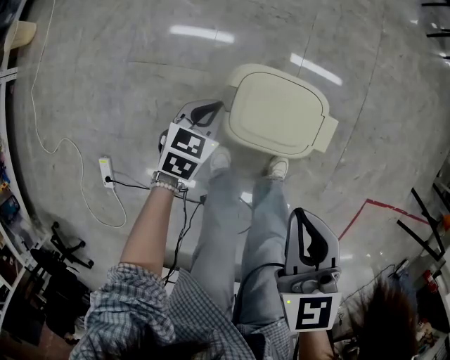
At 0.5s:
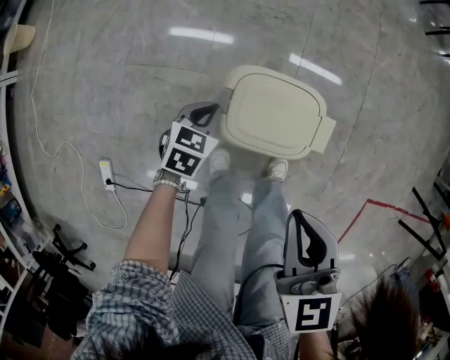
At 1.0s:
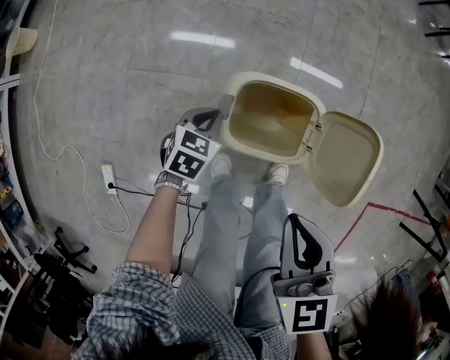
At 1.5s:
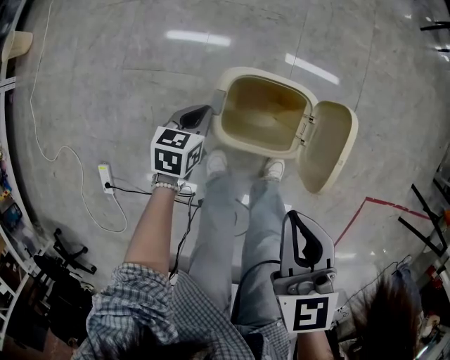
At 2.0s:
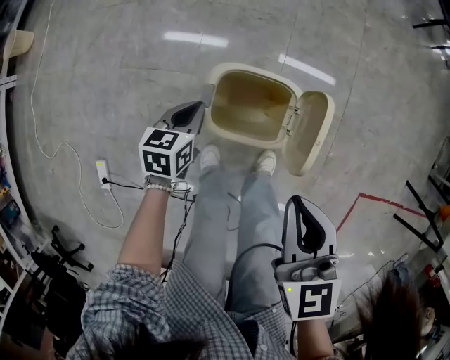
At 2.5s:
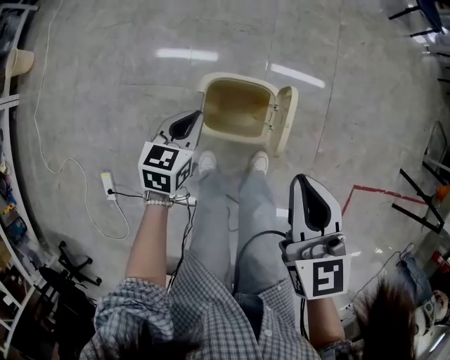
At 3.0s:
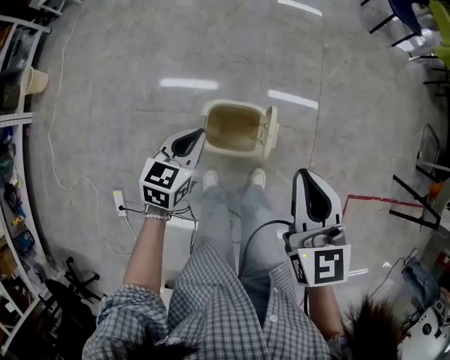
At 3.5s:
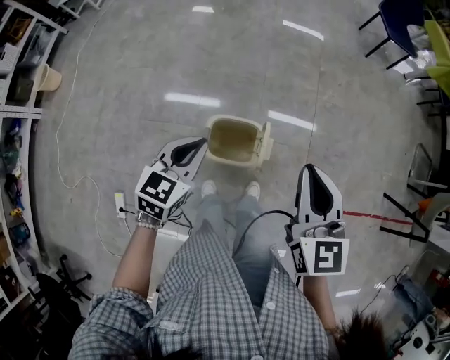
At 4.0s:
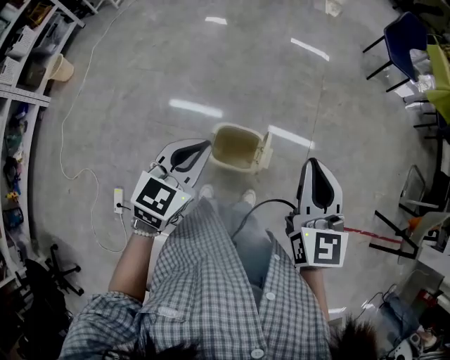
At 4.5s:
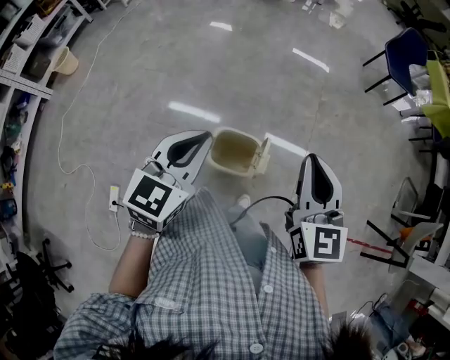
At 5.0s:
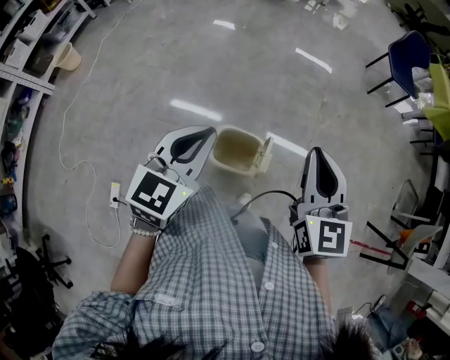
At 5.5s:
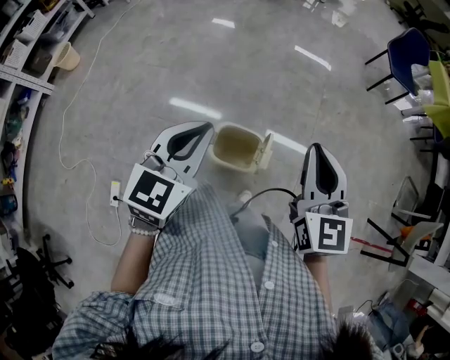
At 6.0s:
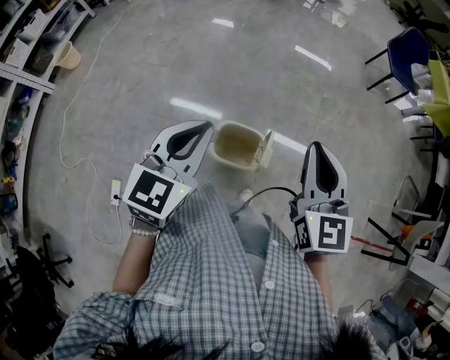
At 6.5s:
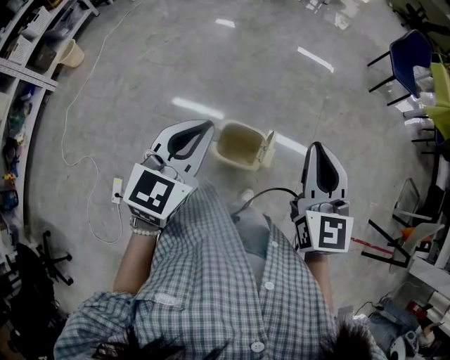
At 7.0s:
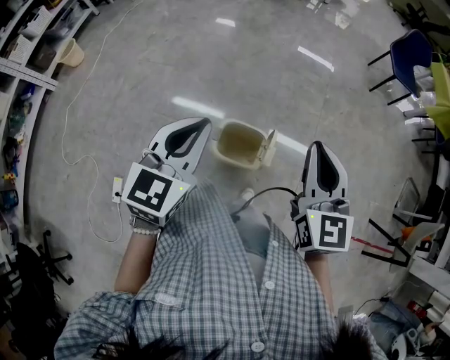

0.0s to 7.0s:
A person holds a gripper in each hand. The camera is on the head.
0.0s to 2.0s: The right gripper moves some 5 cm.
2.0s to 3.5s: Both grippers move upward, roughly 30 cm. The left gripper swivels some 30 degrees; the right gripper rotates roughly 20 degrees.
3.5s to 5.0s: The left gripper is displaced upward by about 15 cm. The right gripper shifts approximately 10 cm upward.
5.0s to 7.0s: The grippers stay close to where they were, moving slightly.

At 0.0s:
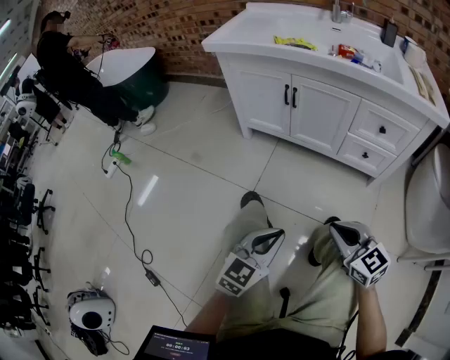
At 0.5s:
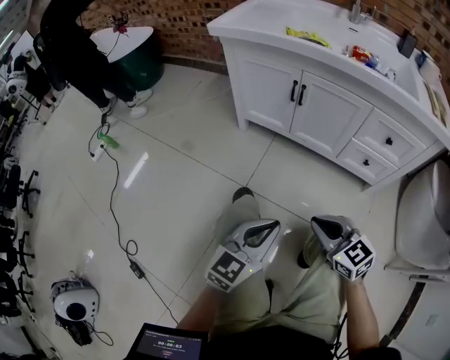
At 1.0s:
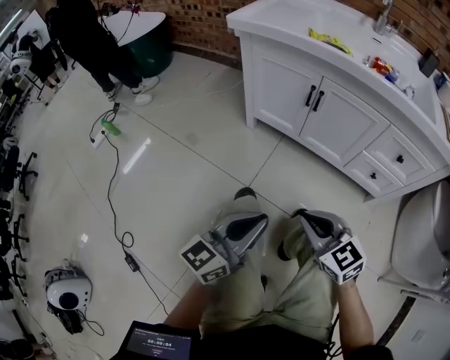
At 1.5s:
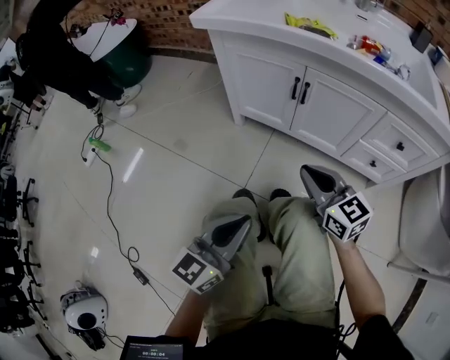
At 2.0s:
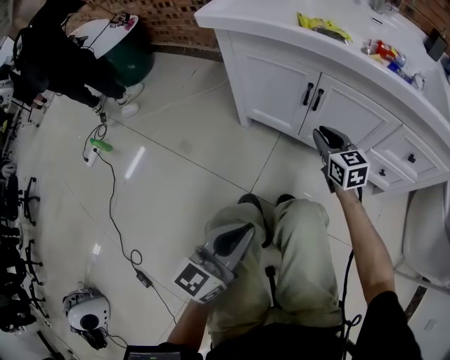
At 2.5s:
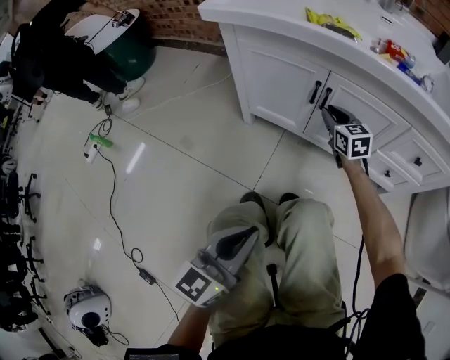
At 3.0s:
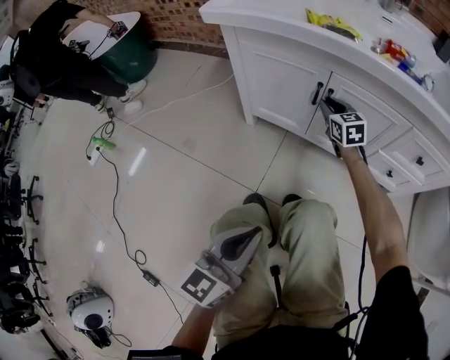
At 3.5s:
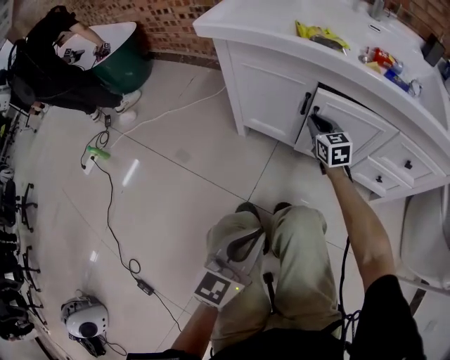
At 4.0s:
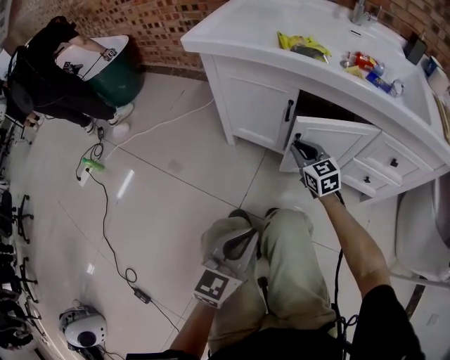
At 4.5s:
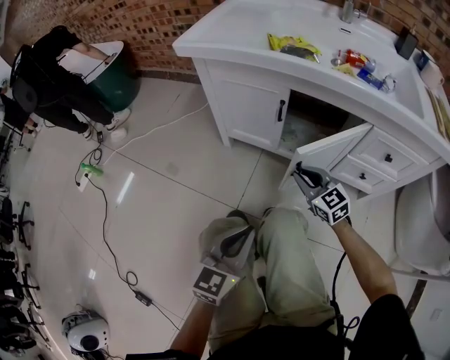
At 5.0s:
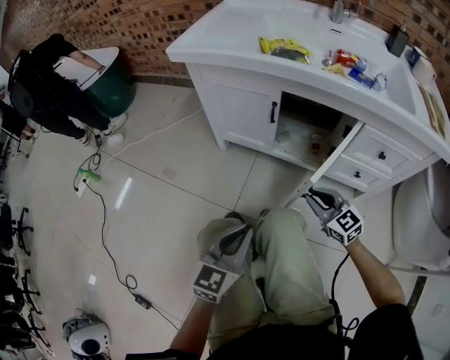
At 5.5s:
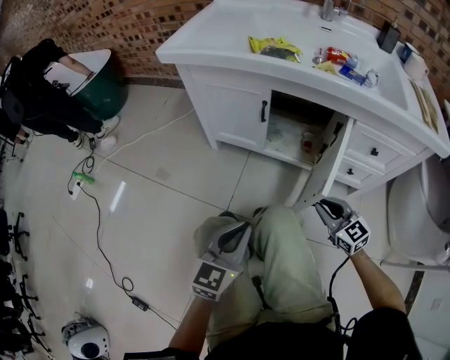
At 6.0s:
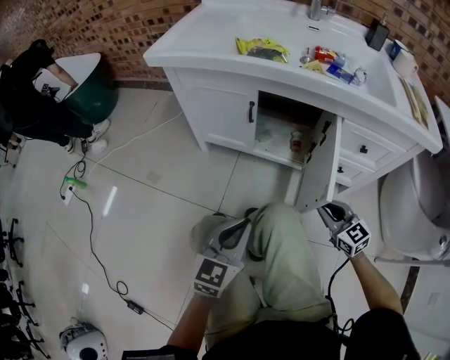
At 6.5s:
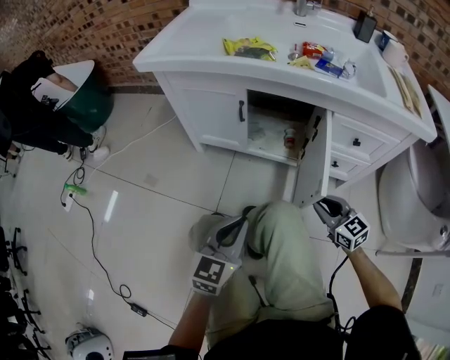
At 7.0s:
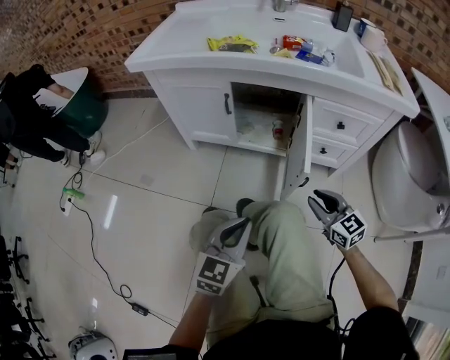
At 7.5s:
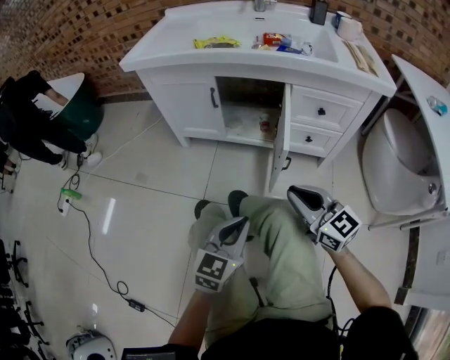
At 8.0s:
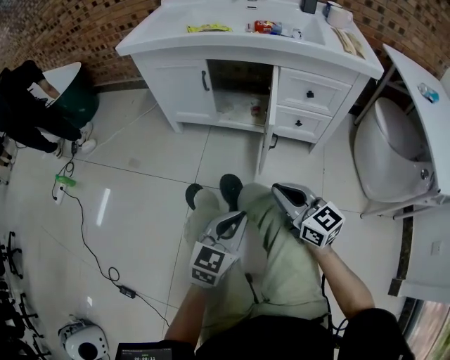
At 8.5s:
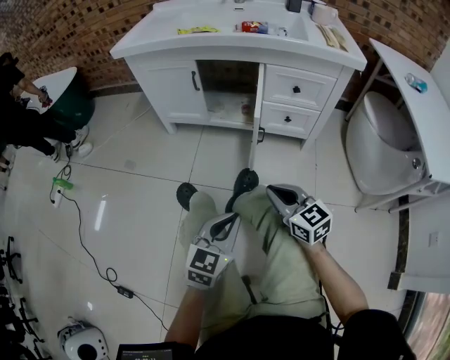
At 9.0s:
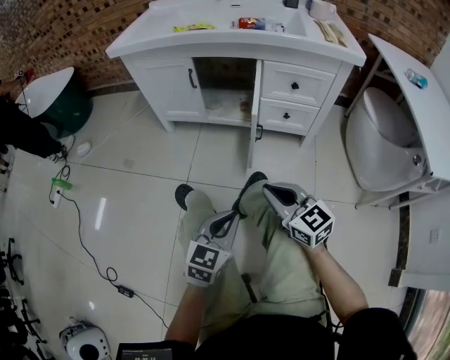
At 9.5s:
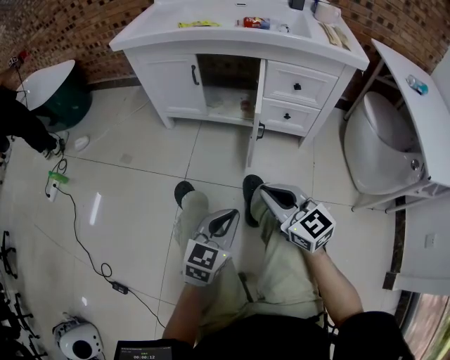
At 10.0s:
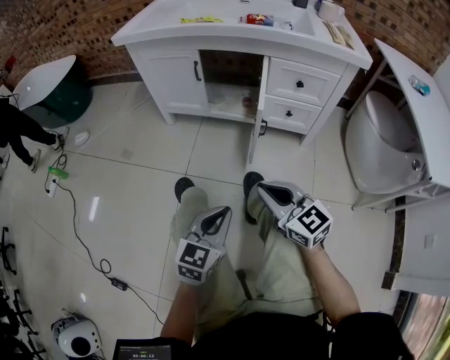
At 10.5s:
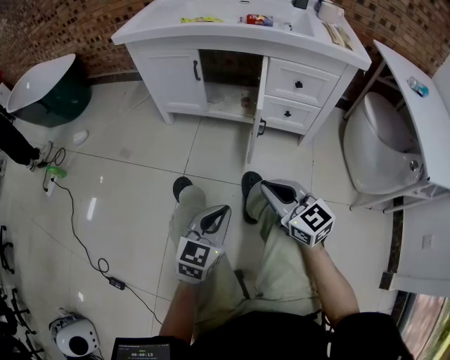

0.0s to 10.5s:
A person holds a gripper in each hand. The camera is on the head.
0.0s to 2.0s: The left gripper heads forward and to the left, covering roughly 20 cm, and turns by about 20 degrees. The right gripper goes about 40 cm forward.
2.0s to 4.0s: The right gripper travels forward and back again, some 10 cm each way.
4.0s to 6.5s: The left gripper is displaced to the right by about 5 cm, while the right gripper goes approximately 30 cm backward and to the right.
6.5s to 8.5s: The right gripper goes roughly 20 cm backward. The left gripper moves backward and to the right, approximately 25 cm.
8.5s to 10.5s: The right gripper moves approximately 5 cm.

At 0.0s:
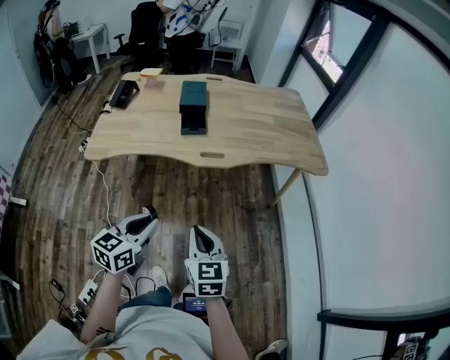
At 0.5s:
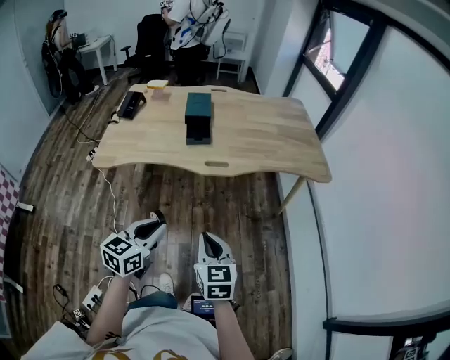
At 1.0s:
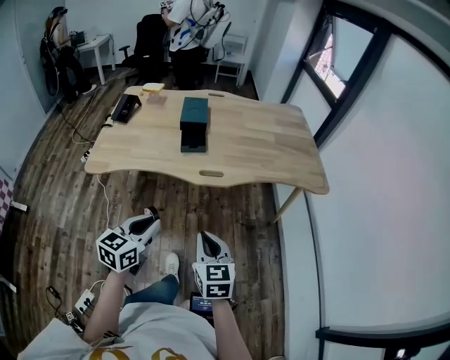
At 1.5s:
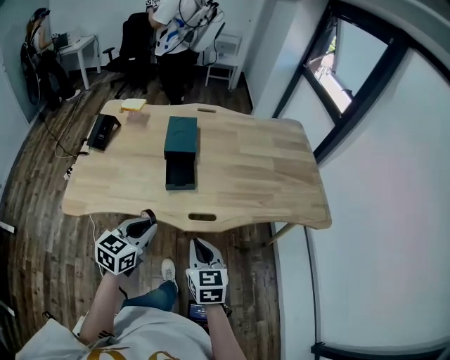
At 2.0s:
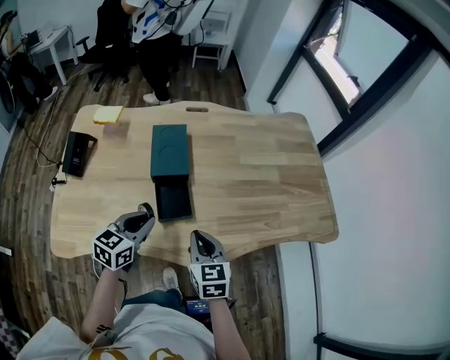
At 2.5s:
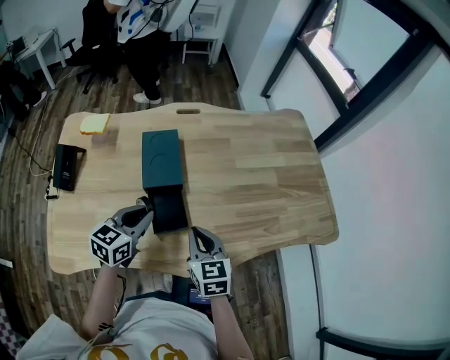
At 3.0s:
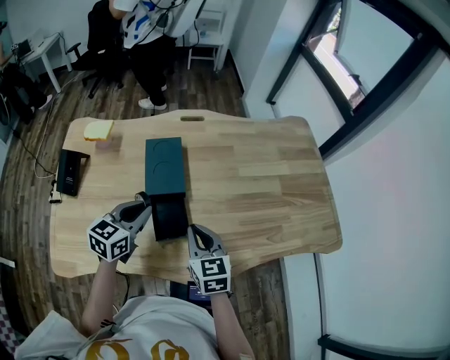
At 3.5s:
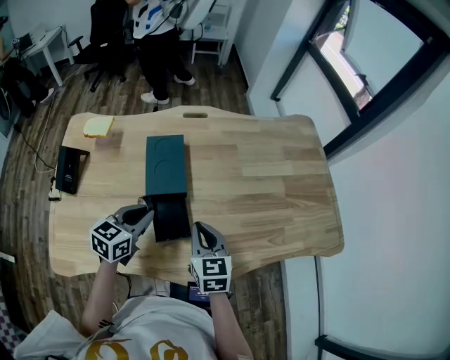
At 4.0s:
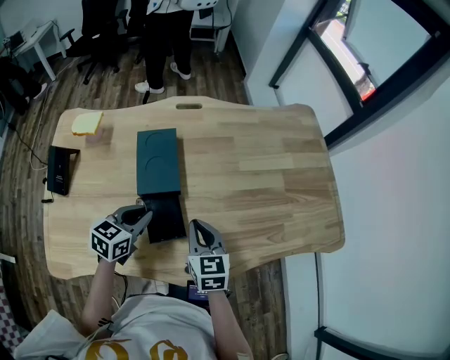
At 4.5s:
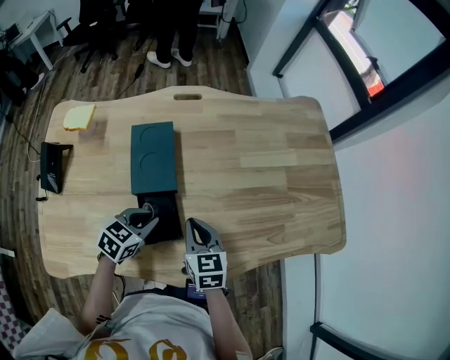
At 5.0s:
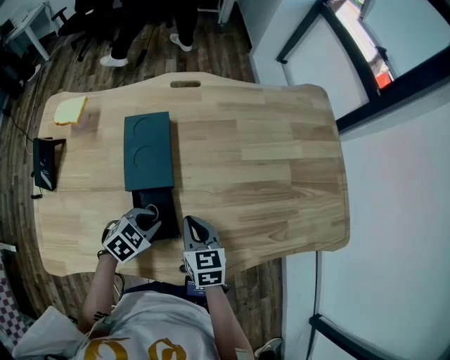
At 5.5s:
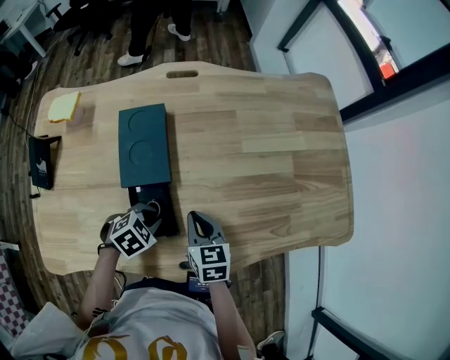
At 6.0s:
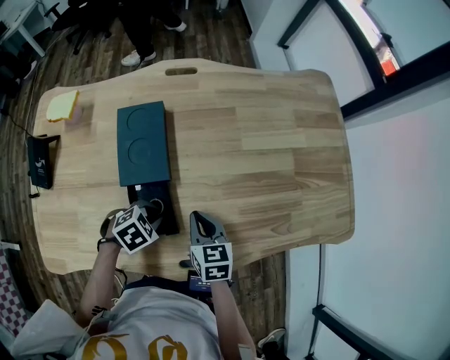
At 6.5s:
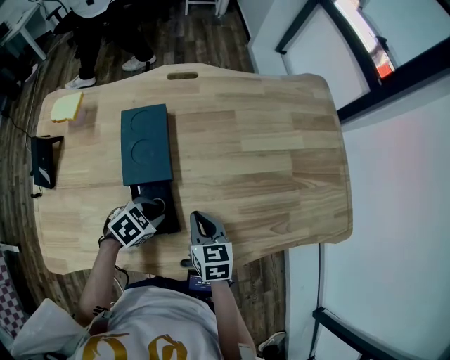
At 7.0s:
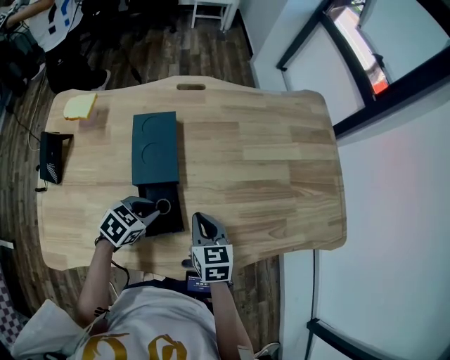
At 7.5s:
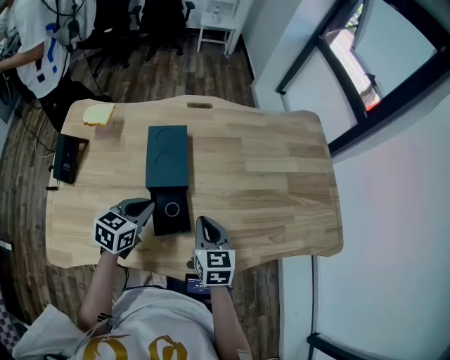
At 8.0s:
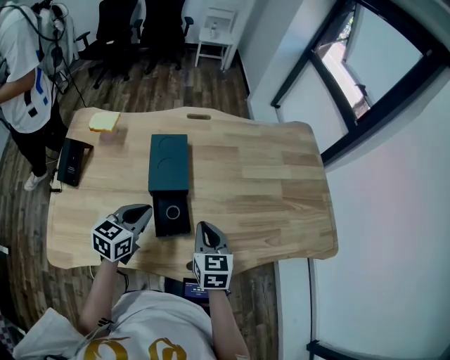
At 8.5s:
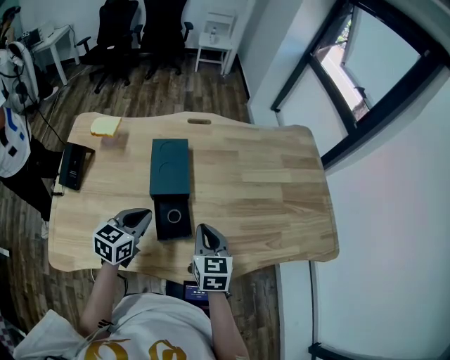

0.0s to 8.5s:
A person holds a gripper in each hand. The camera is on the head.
0.0s to 2.0s: The pair of grippers is taken forward, some 50 cm.
2.0s to 4.0s: The left gripper travels forward and downward by about 15 cm. The right gripper shifts roughly 15 cm forward.
4.0s to 6.5s: The right gripper is displaced downward by some 10 cm. Meanwhile the left gripper goes approximately 15 cm downward and to the right, and changes its angle by some 40 degrees.
6.5s to 8.5s: The left gripper goes roughly 15 cm upward and to the left, and tilts its fingers roughly 30 degrees upward; the right gripper travels upward by some 10 cm.

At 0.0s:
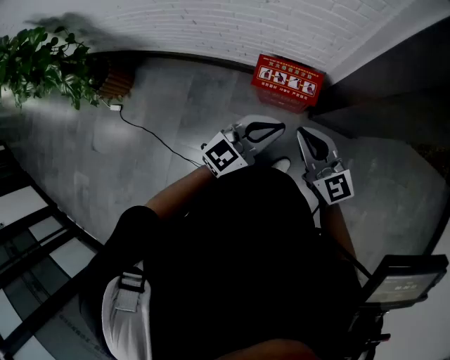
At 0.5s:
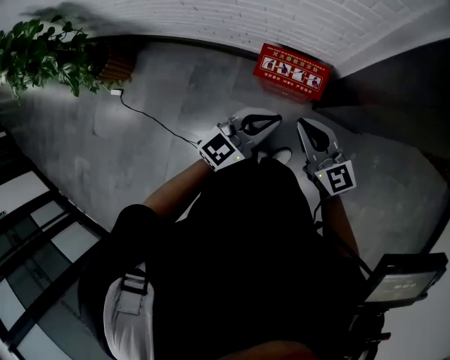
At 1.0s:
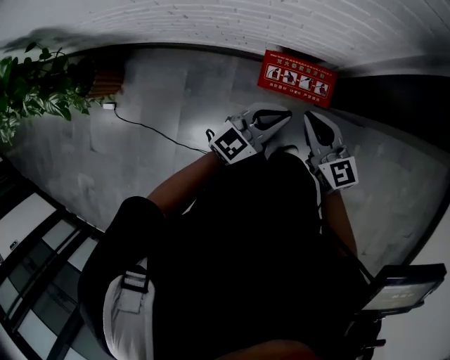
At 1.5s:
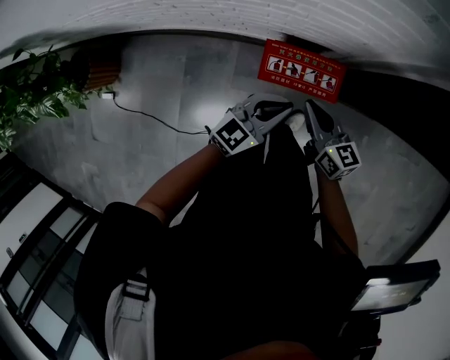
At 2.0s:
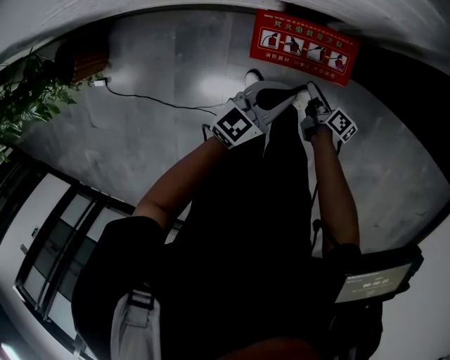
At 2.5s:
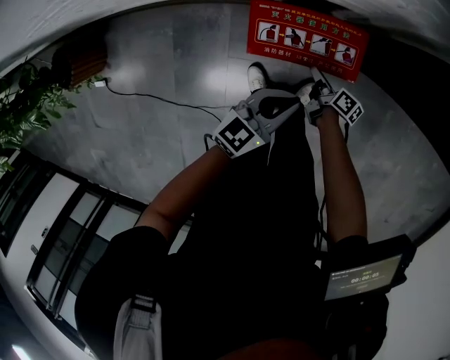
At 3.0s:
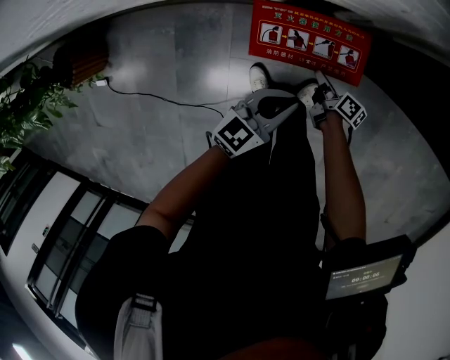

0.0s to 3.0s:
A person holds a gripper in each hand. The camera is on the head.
0.0s to 1.5s: The two grippers go approximately 30 cm forward and downward. The right gripper changes its angle by some 30 degrees.
1.5s to 3.0s: The right gripper goes approximately 40 cm downward, twists approximately 50 degrees clockwise, seen from behind, and opens; the left gripper heads downward, covering roughly 20 cm.
